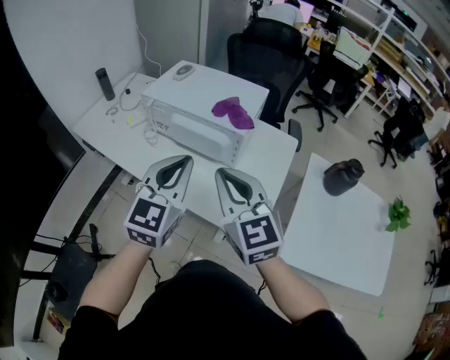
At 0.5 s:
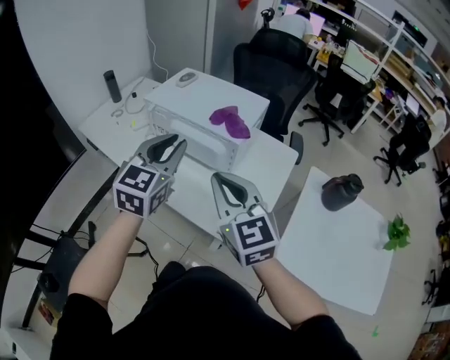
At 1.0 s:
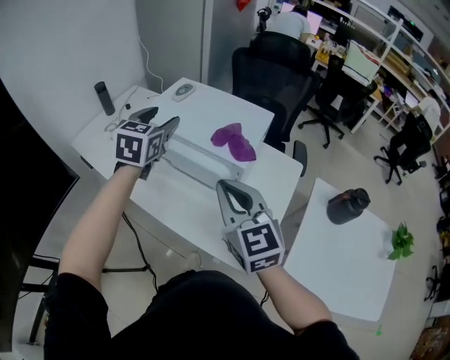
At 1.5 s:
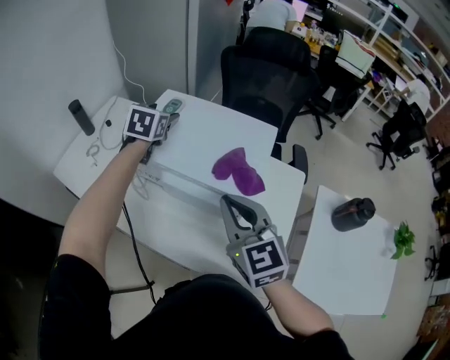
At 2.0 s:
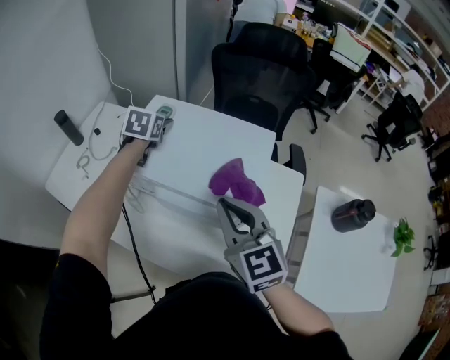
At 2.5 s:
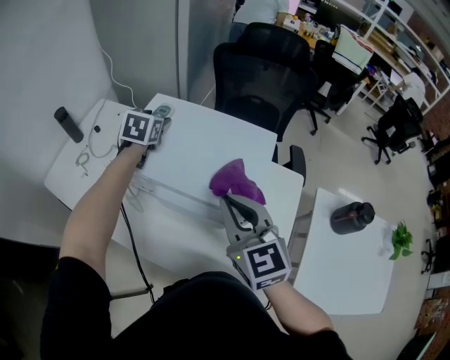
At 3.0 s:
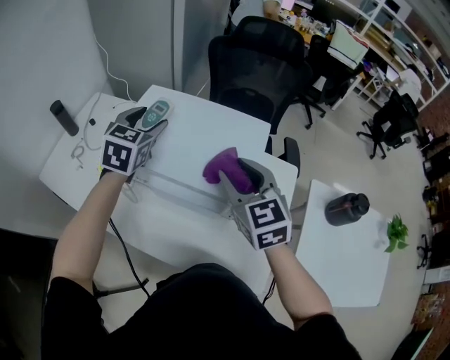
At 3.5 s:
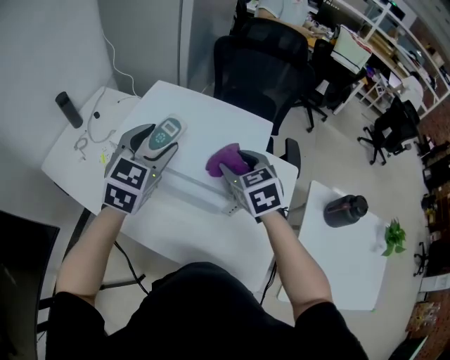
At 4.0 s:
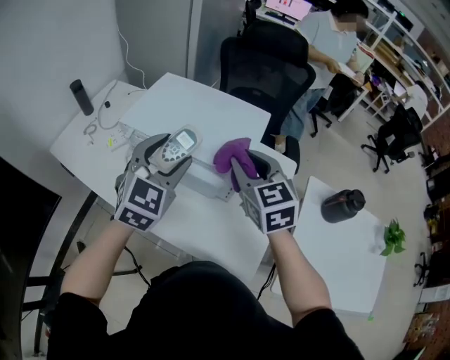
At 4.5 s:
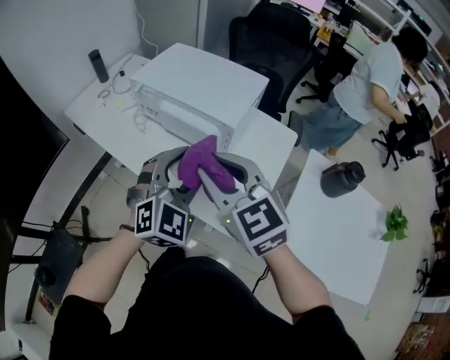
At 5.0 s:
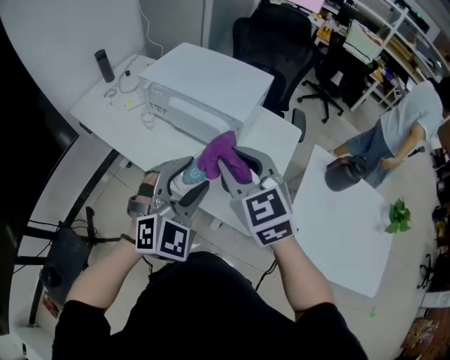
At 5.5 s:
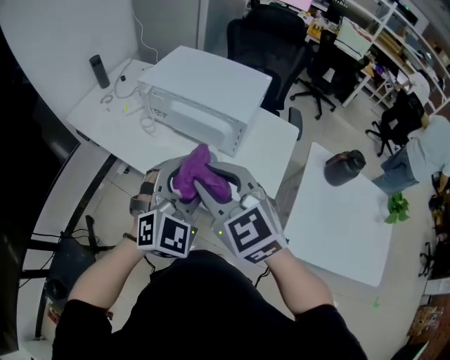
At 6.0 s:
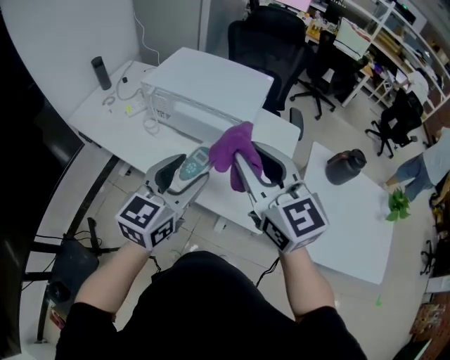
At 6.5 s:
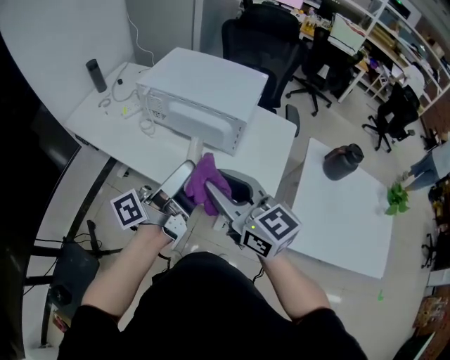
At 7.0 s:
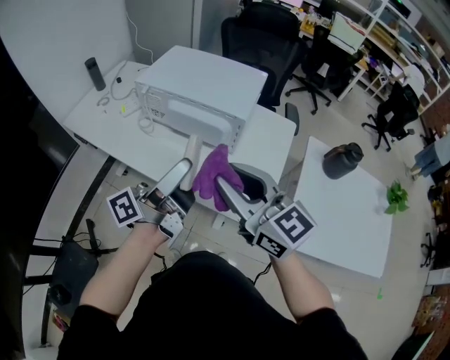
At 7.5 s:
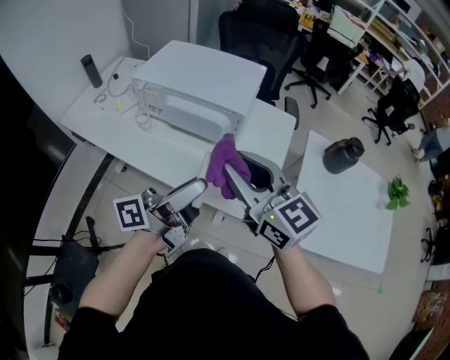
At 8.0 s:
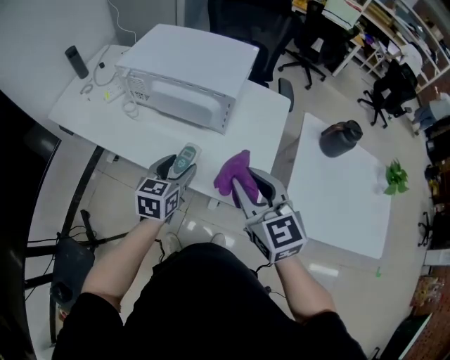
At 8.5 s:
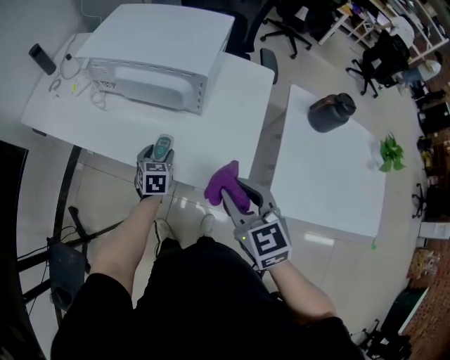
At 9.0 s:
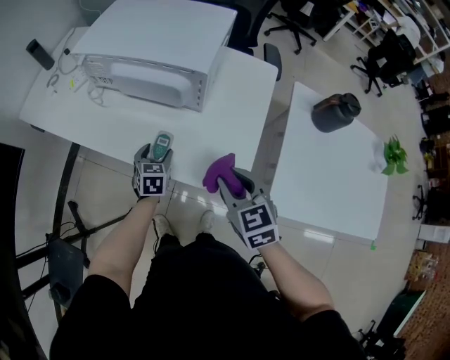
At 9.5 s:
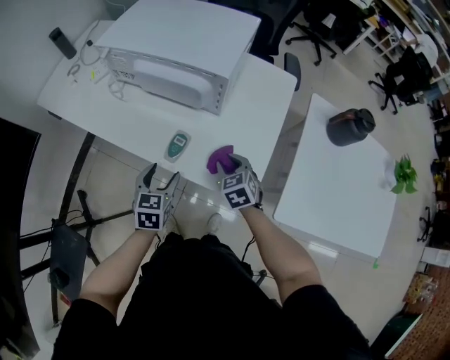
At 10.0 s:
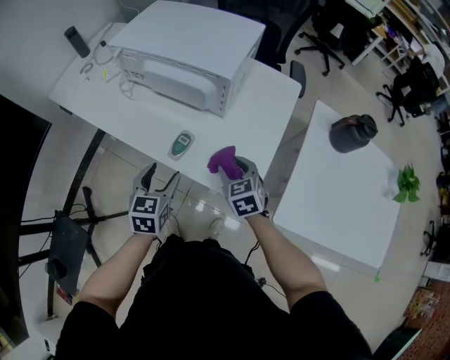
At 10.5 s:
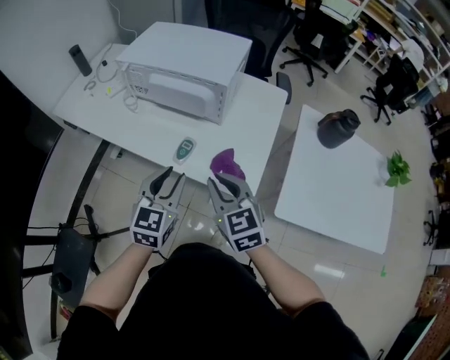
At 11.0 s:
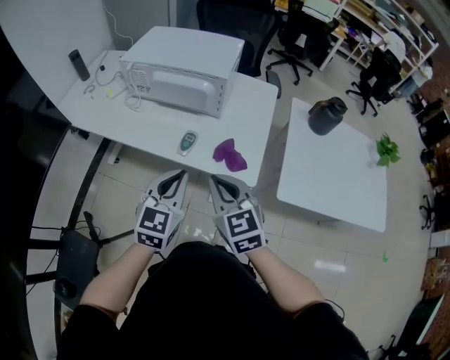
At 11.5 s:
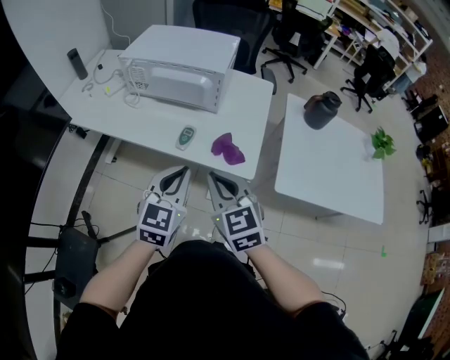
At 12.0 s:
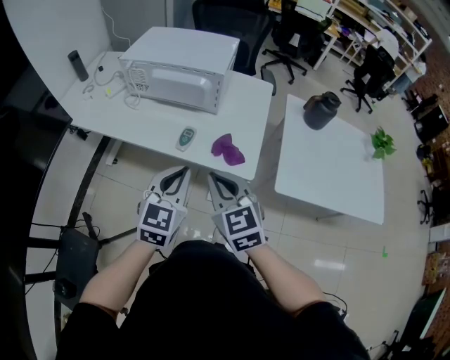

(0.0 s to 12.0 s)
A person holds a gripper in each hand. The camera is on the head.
0.0 s - 2.0 s: The right gripper is displaced forward by about 25 cm; the left gripper travels forward by approximately 50 cm, tips its fingers downward by about 40 degrees, and opens its fingers.
2.0 s - 4.0 s: The left gripper goes approximately 30 cm backward, and turns by some 30 degrees. Meanwhile the right gripper is displaced to the right by approximately 5 cm, moves approximately 10 cm forward and comes back, and opens.
4.0 s - 6.0 s: Both grippers move backward, roughly 20 cm. The left gripper swivels roughly 30 degrees; the right gripper swivels roughly 20 degrees.
6.0 s - 8.0 s: Both grippers travel together downward, approximately 15 cm. The left gripper changes its angle by about 20 degrees.
8.0 s - 10.0 s: The left gripper travels downward by roughly 5 cm, while the right gripper goes about 25 cm downward, and swivels approximately 20 degrees.
10.0 s - 12.0 s: The right gripper moves upward, backward and to the left, roughly 30 cm, changes its angle by about 20 degrees, and closes its fingers; the left gripper is displaced upward and backward by approximately 20 cm, swivels roughly 30 degrees, and closes.

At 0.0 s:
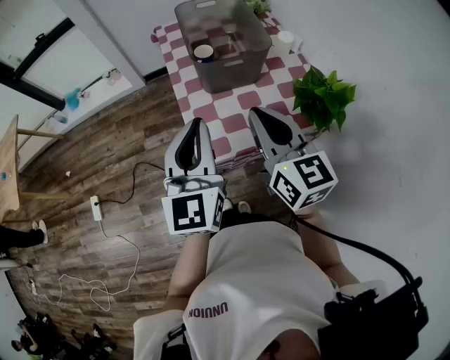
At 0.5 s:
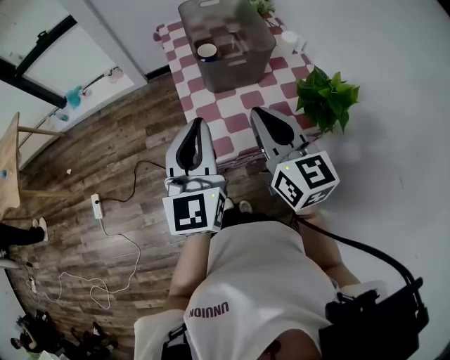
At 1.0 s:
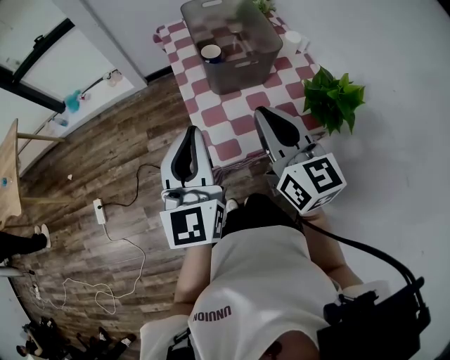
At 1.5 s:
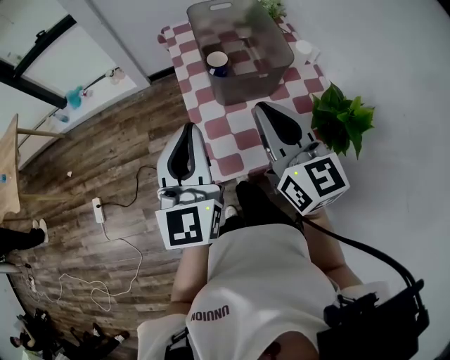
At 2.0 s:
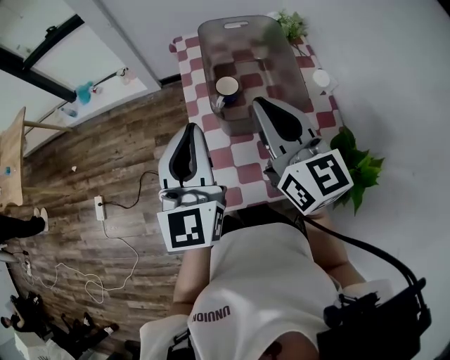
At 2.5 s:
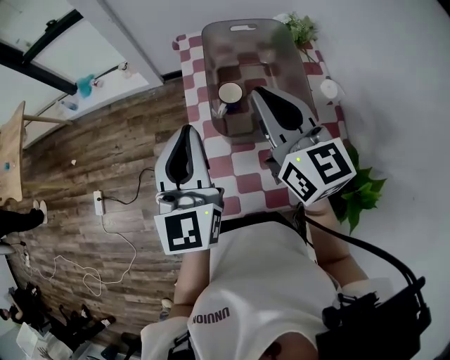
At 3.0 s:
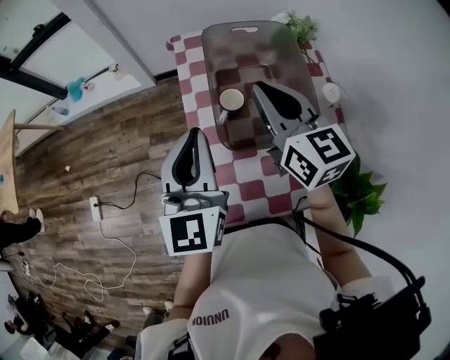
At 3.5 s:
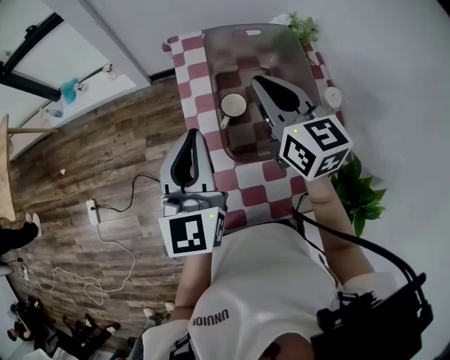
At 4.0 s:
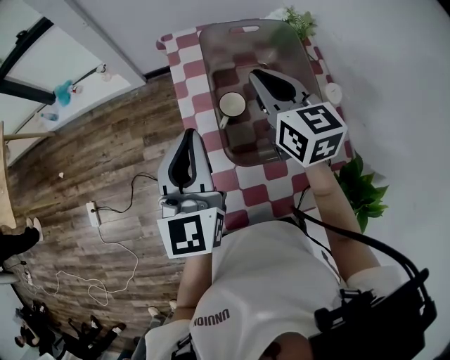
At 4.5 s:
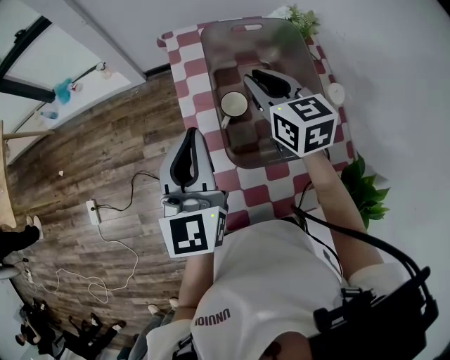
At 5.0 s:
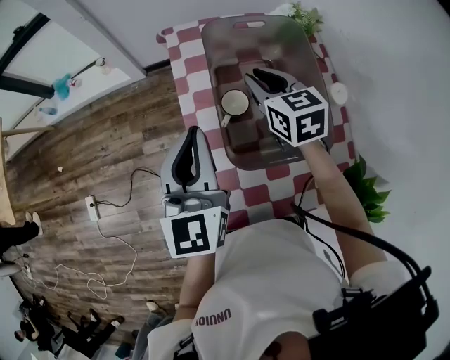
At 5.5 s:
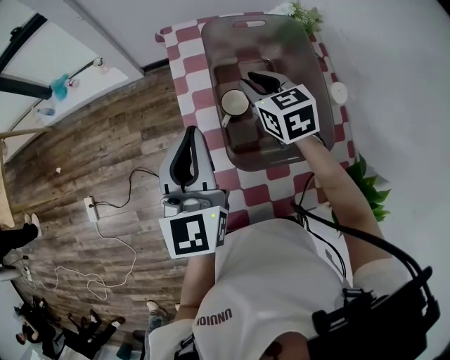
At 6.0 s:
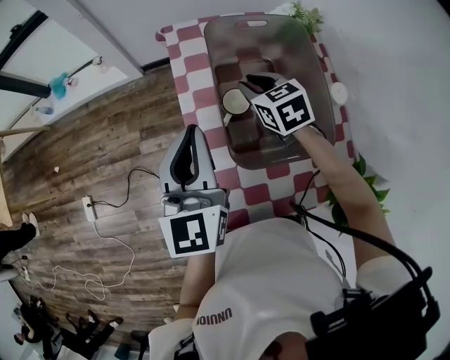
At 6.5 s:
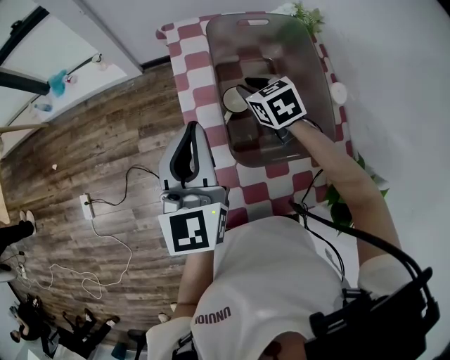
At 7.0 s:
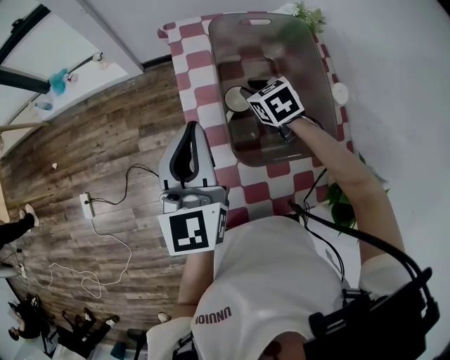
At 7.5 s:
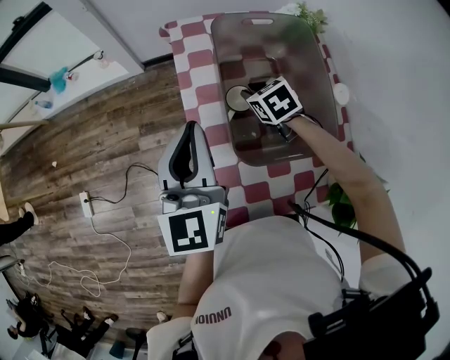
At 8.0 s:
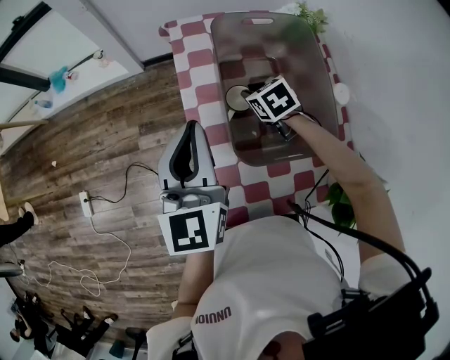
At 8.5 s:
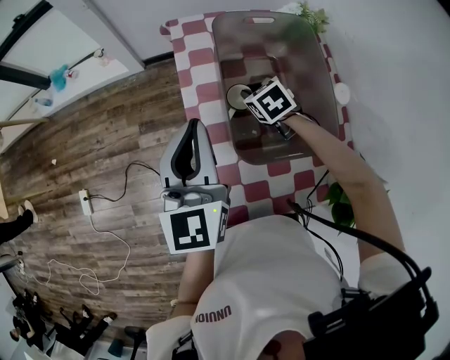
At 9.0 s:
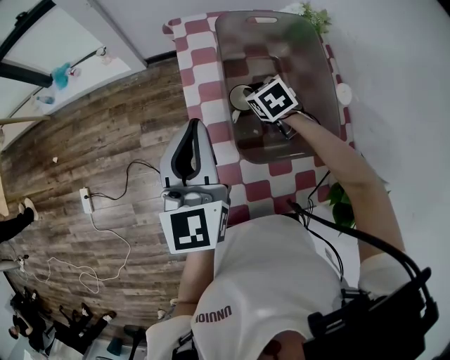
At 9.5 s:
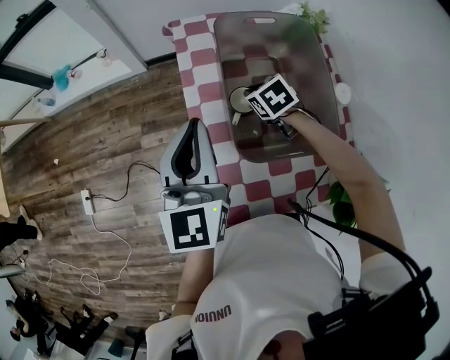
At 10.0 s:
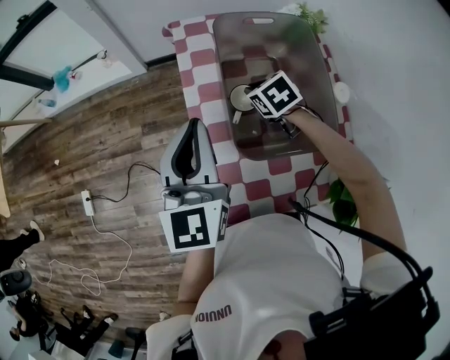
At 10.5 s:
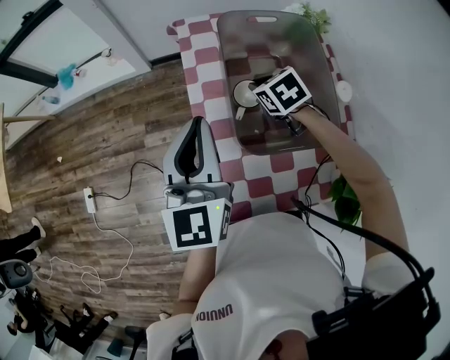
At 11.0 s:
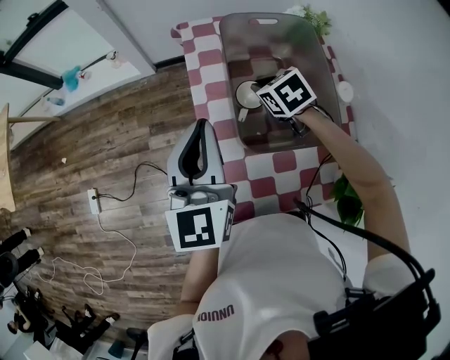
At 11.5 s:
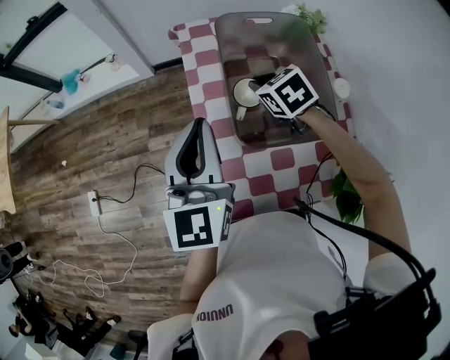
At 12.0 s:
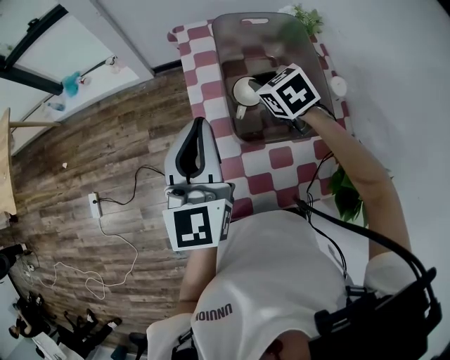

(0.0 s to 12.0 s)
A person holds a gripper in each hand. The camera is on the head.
0.0 s - 2.0 s: Both grippers move forward, roughly 15 cm.
2.0 s - 4.0 s: The right gripper travels forward and downward by roughly 20 cm, while the left gripper moves forward, roughly 10 cm.
4.0 s - 6.0 s: The right gripper is displaced downward by about 15 cm, and changes its angle by roughly 30 degrees.
6.0 s - 8.0 s: The right gripper shifts roughly 10 cm downward.
8.0 s - 10.0 s: The grippers make only small movements.
10.0 s - 12.0 s: The right gripper goes some 10 cm upward.

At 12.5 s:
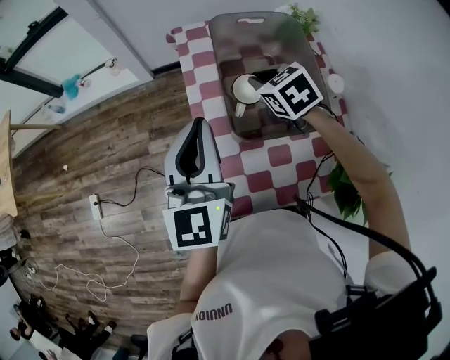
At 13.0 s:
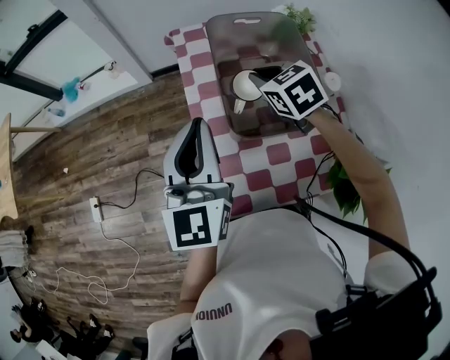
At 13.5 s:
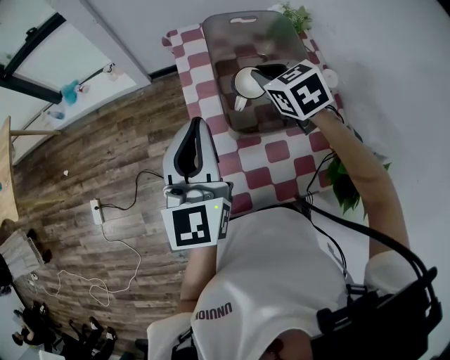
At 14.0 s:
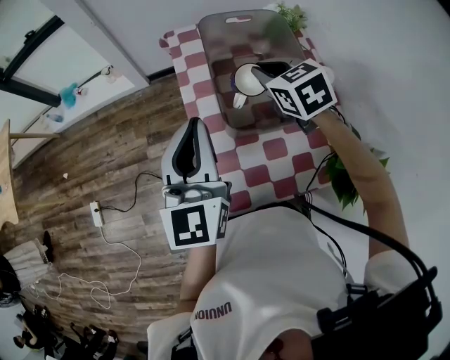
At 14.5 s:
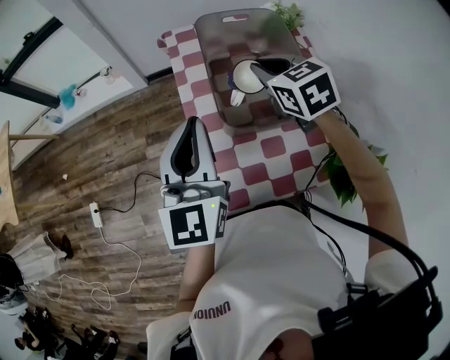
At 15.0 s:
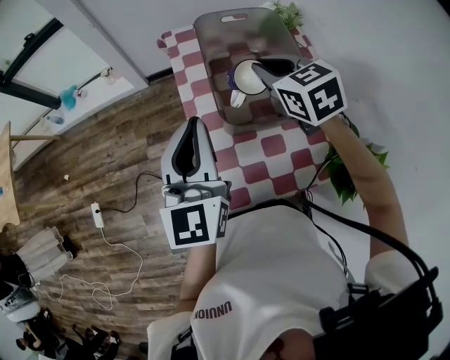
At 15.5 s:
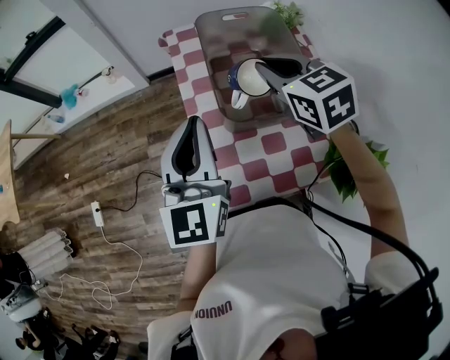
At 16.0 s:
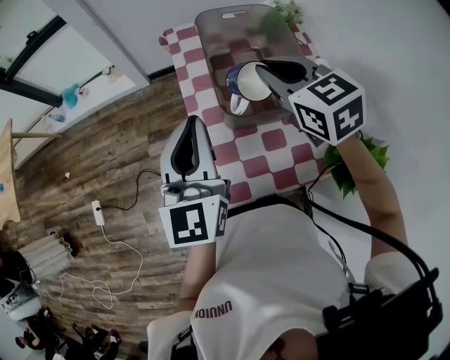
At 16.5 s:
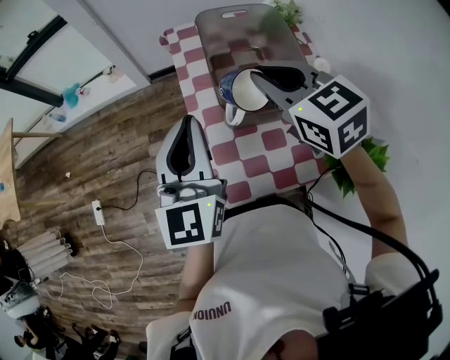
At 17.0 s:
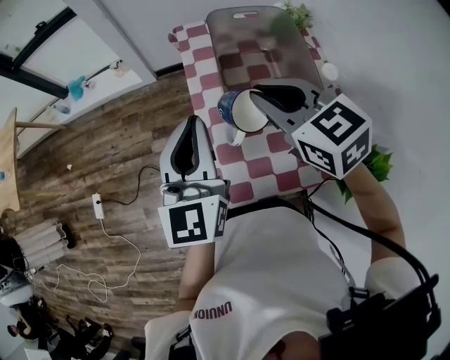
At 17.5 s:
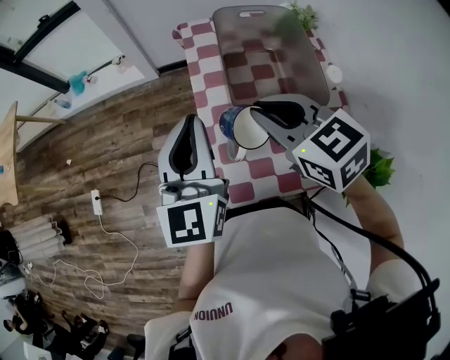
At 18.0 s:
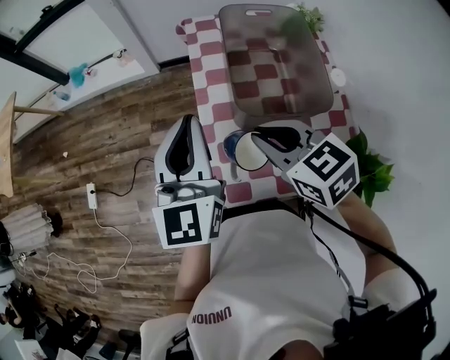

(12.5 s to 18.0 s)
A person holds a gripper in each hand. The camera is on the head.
12.5 s - 14.5 s: The right gripper goes about 10 cm upward.
14.5 s - 16.0 s: The right gripper is displaced backward and upward by some 10 cm.
16.0 s - 18.0 s: The right gripper goes roughly 15 cm backward, to the left and downward.
